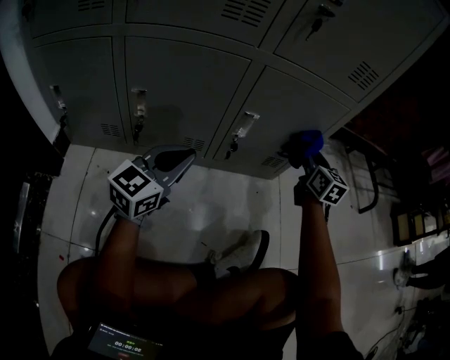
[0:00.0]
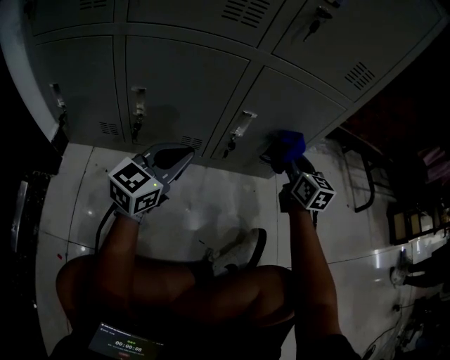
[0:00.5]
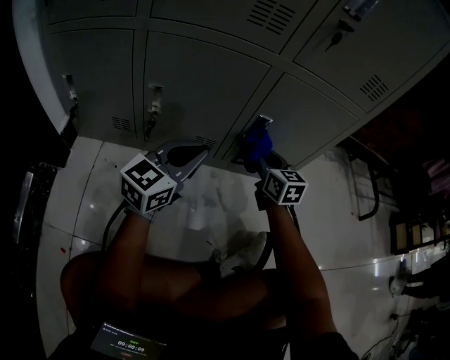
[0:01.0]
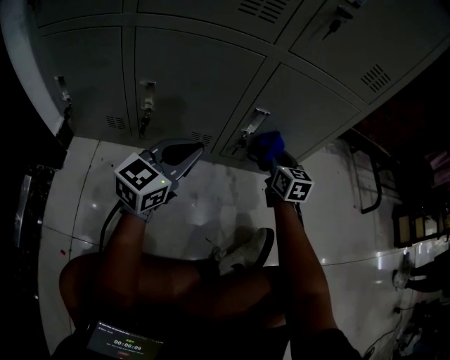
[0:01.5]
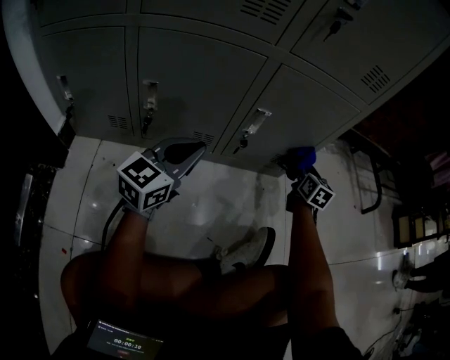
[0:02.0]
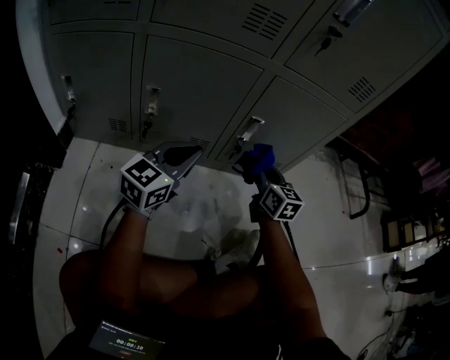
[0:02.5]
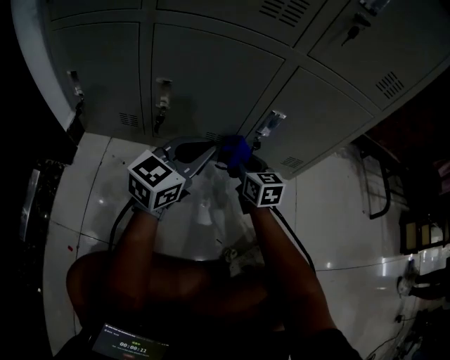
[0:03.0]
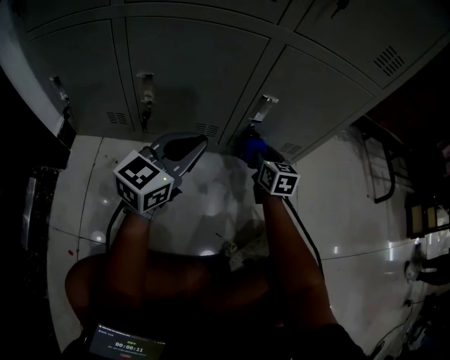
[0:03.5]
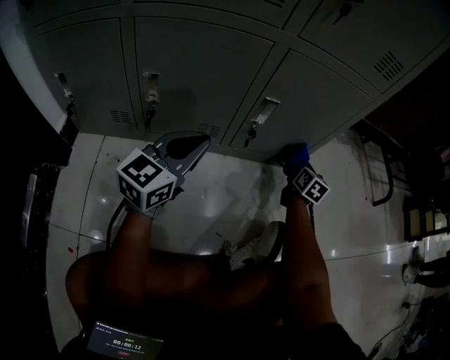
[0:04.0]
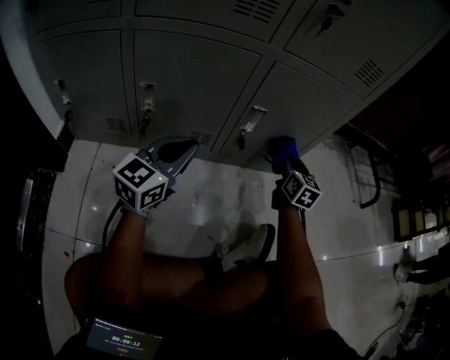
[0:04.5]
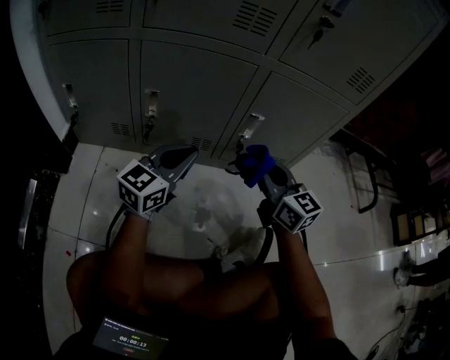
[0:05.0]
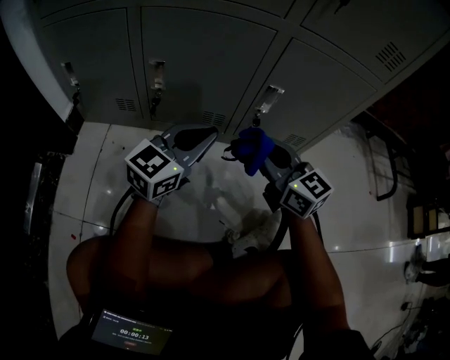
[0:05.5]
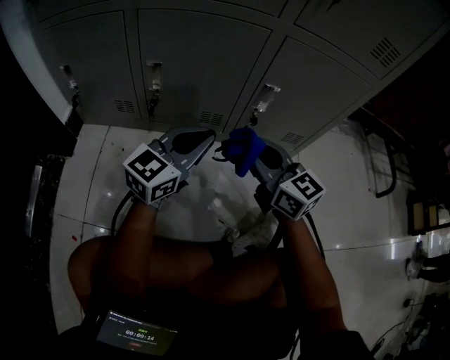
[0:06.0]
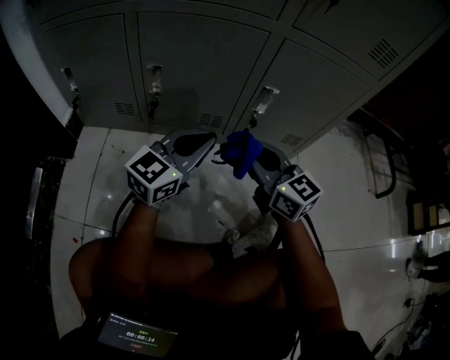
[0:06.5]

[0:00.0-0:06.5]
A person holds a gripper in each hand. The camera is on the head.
0:00.0 to 0:02.0: The right gripper shifts some 10 cm downward, and reaches roughly 15 cm to the left, then returns.
0:02.0 to 0:04.5: The right gripper moves left and right over roughly 25 cm, changing direction 2 times.
0:04.5 to 0:06.5: The right gripper travels to the left and backward by about 25 cm, and changes its angle by approximately 50 degrees.

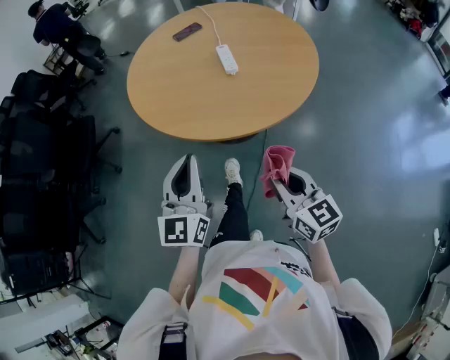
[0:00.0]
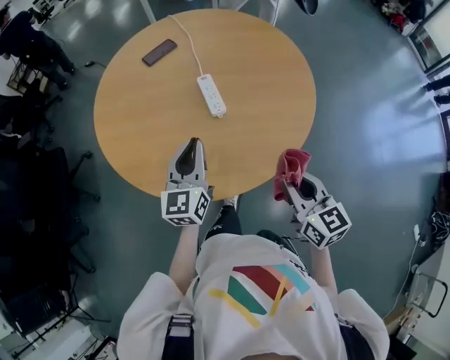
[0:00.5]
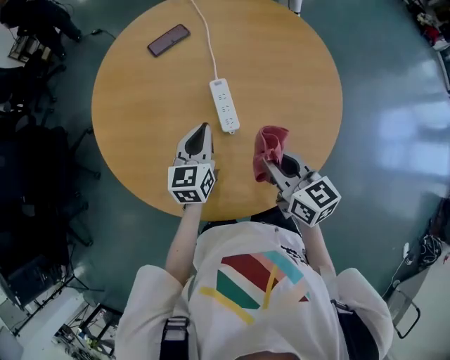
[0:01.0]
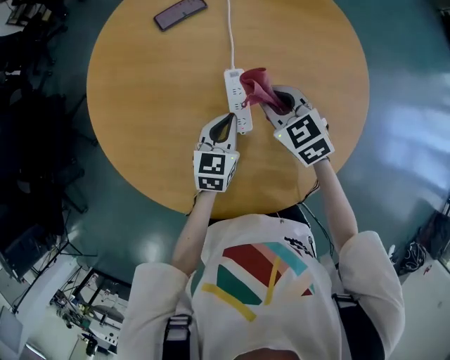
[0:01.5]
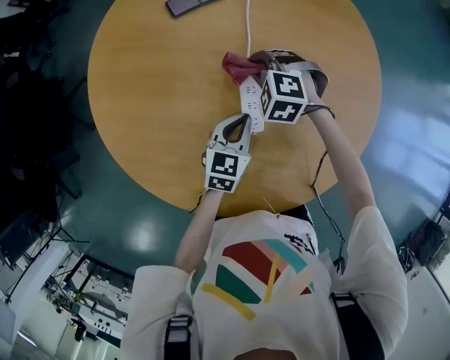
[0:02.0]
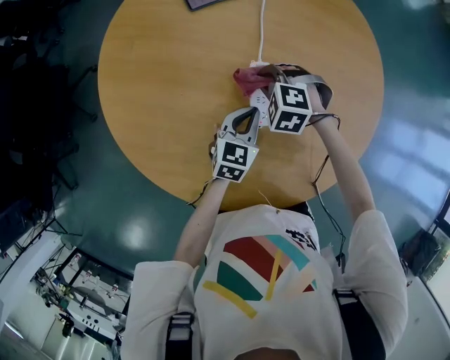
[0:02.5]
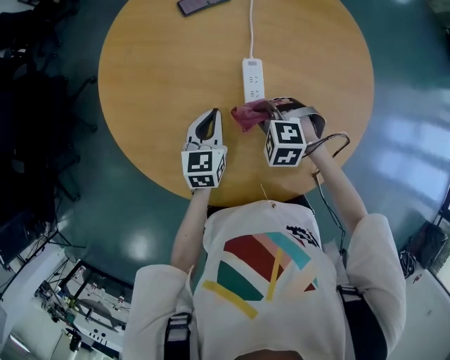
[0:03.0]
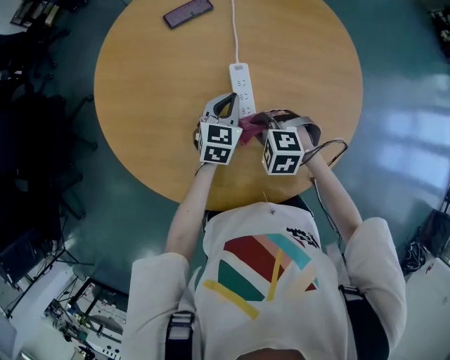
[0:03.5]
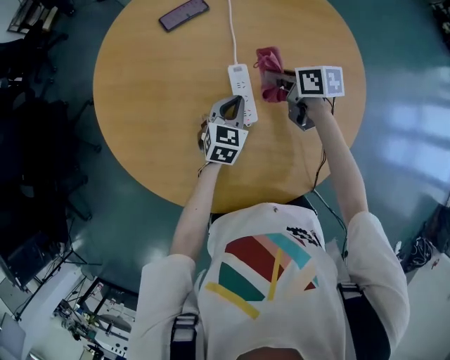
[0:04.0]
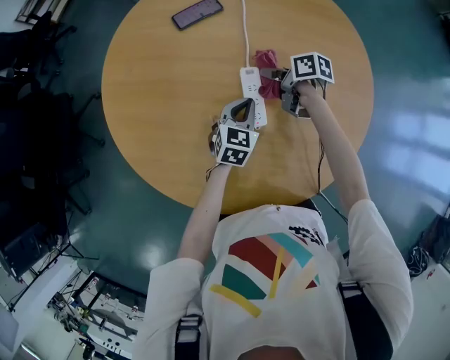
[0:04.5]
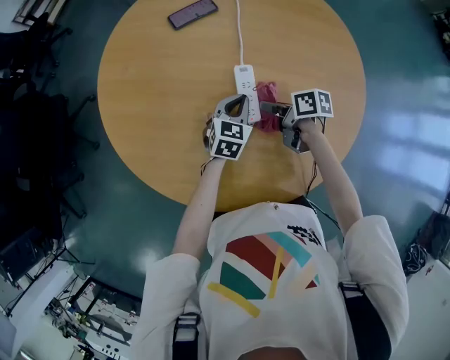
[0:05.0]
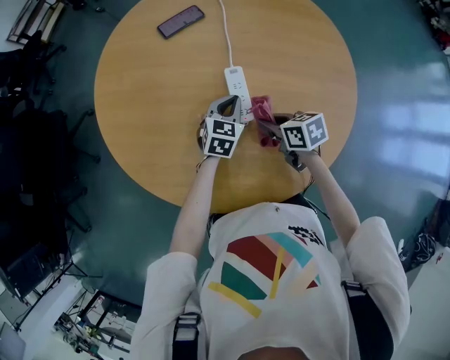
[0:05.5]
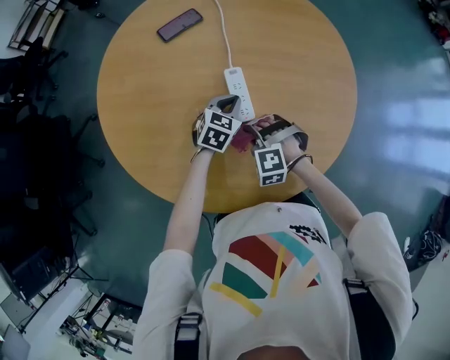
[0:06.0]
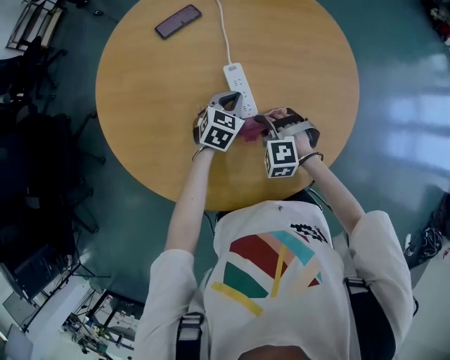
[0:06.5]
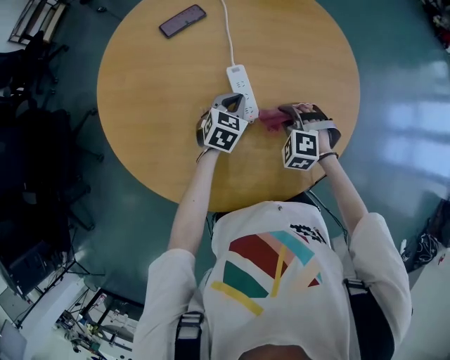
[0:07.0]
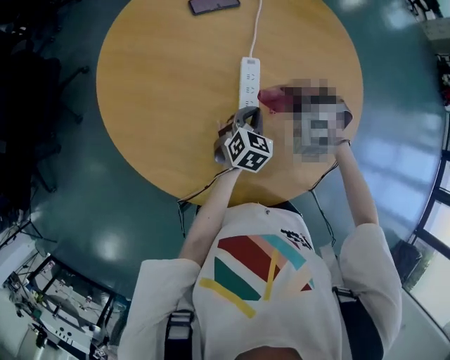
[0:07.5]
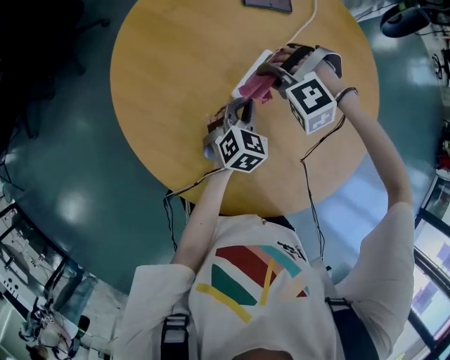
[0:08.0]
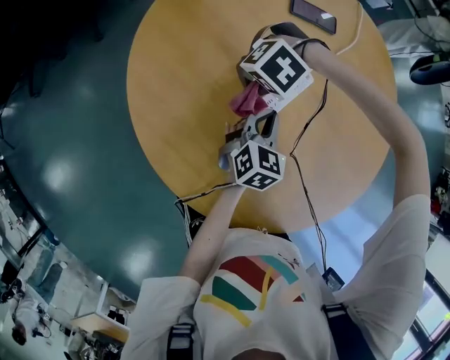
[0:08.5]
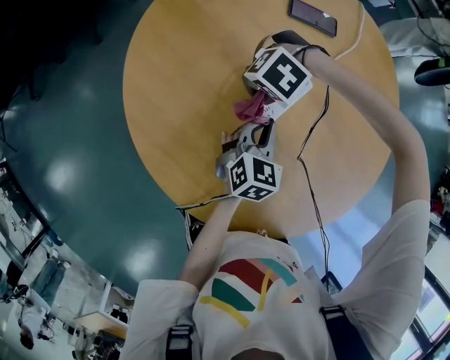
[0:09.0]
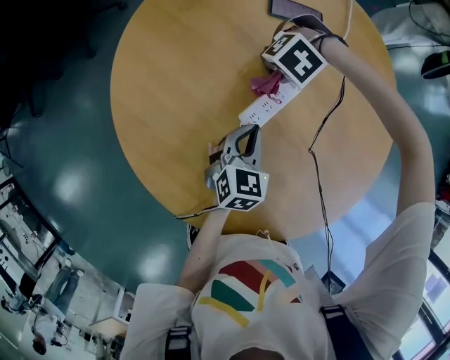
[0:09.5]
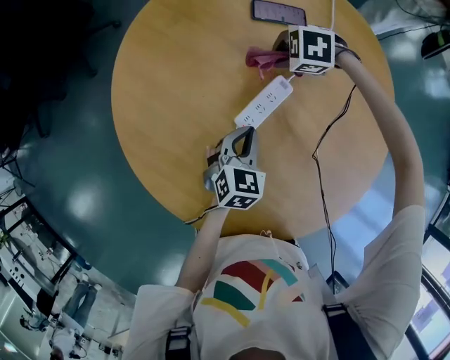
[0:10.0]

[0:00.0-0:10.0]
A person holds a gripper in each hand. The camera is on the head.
0:00.0 to 0:02.0: The pair of grippers is taken forward, some 60 cm. The right gripper points its fingers some 50 degrees further downward. The left gripper shifts some 30 cm downward, and angles its fingers downward, by some 40 degrees.
0:02.0 to 0:04.0: The right gripper heads to the right, covering some 5 cm, reaches approximately 20 cm backward, then returns, and twists roughly 90 degrees clockwise, seen from behind; the left gripper goes to the left and returns, approximately 10 cm each way.
0:04.0 to 0:06.0: The right gripper heads backward and to the left, covering about 20 cm, and twists approximately 100 degrees counterclockwise, seen from behind.
0:06.0 to 0:08.0: The left gripper ends up approximately 10 cm from where it was, and turns by about 40 degrees. Meanwhile the right gripper ends up roughly 20 cm from where it was, and rolls counterclockwise, seen from behind, by roughly 50 degrees.
0:08.0 to 0:10.0: The right gripper ends up approximately 15 cm from where it was, and turns by some 50 degrees.

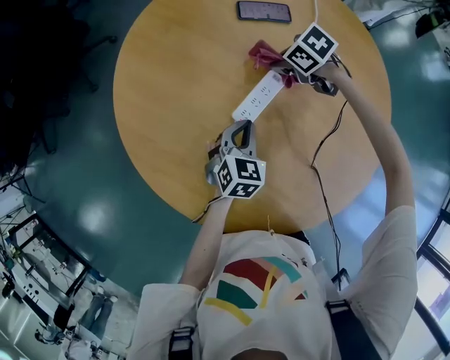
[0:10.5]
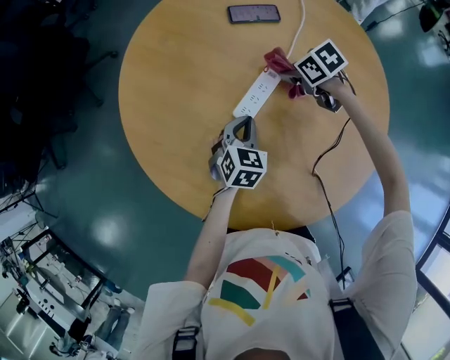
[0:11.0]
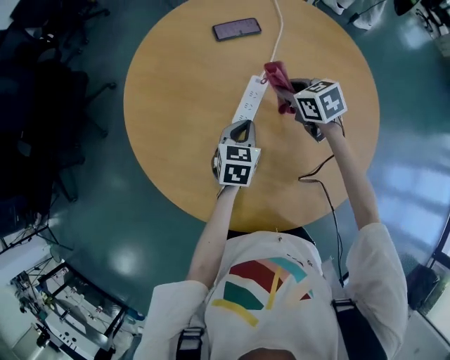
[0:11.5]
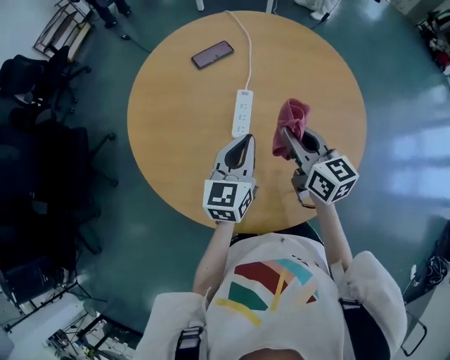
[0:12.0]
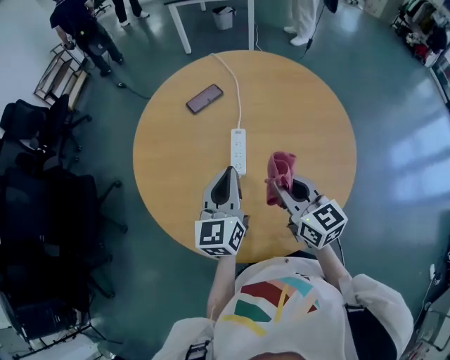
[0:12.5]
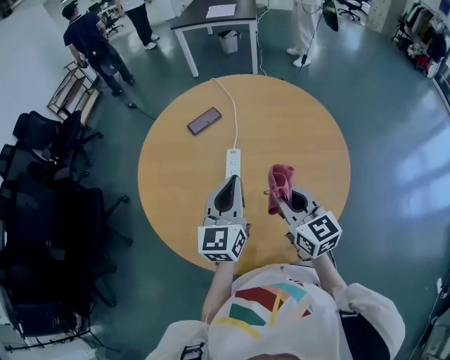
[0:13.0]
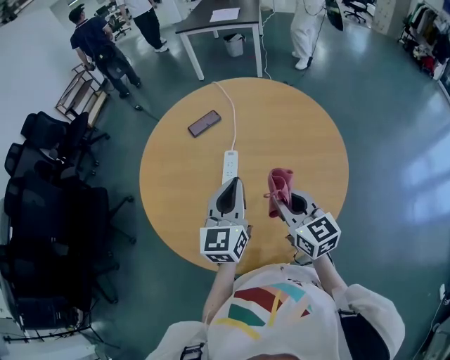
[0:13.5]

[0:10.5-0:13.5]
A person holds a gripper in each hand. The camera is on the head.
0:10.5 to 0:12.0: The left gripper is displaced upward by some 25 cm, and angles its fingers upward, by approximately 30 degrees, while the right gripper moves approximately 40 cm, and points its fingers some 50 degrees further upward.
0:12.0 to 0:13.5: The right gripper shifts approximately 10 cm backward and upward; the left gripper is displaced upward by some 15 cm.

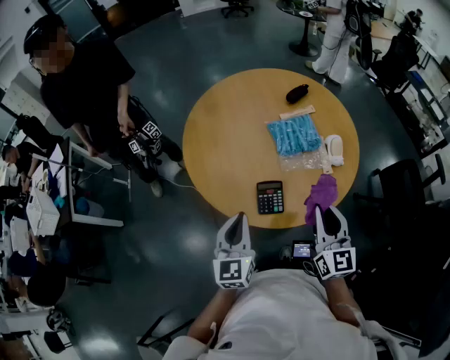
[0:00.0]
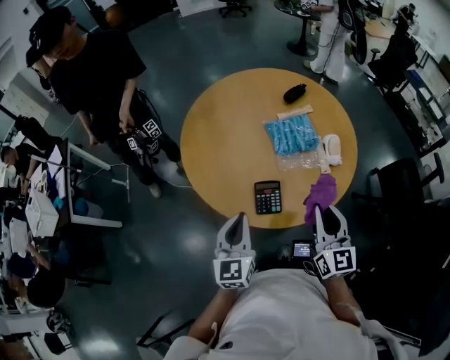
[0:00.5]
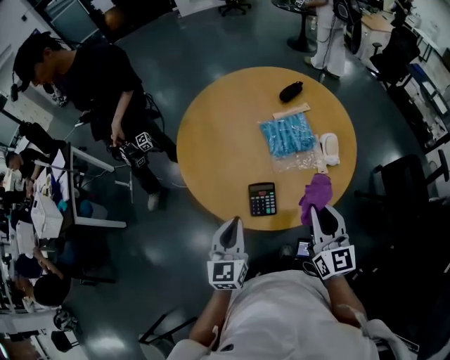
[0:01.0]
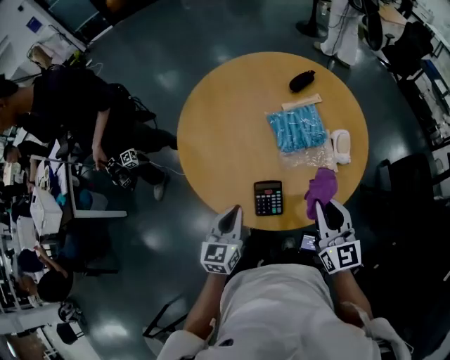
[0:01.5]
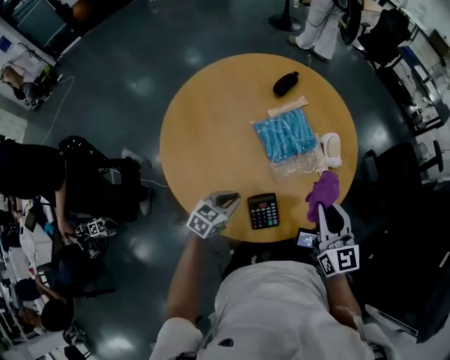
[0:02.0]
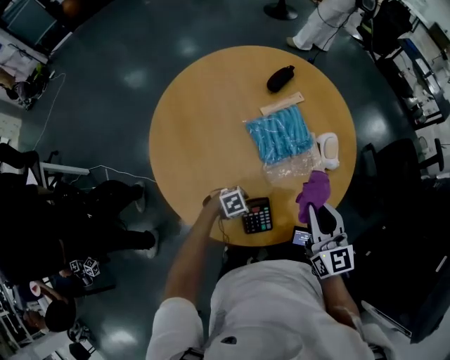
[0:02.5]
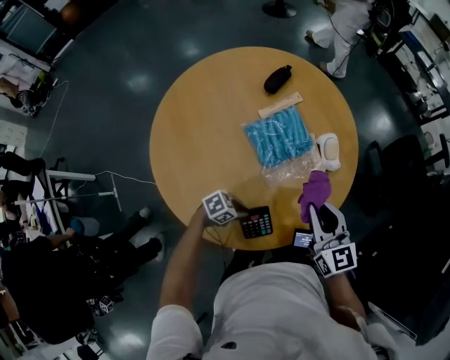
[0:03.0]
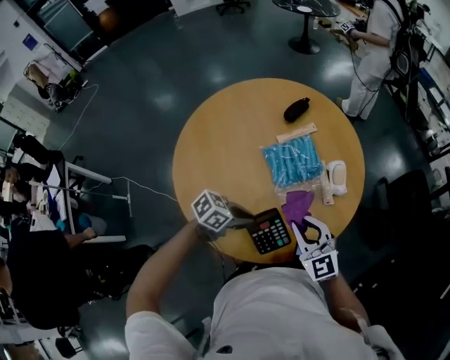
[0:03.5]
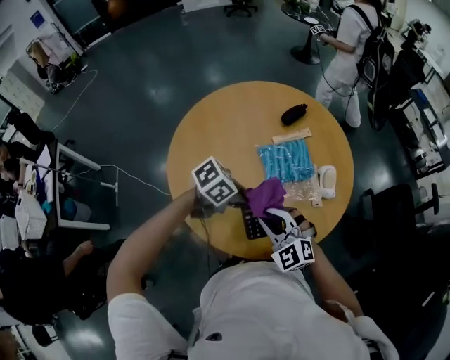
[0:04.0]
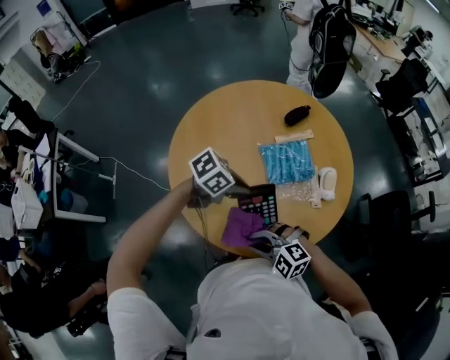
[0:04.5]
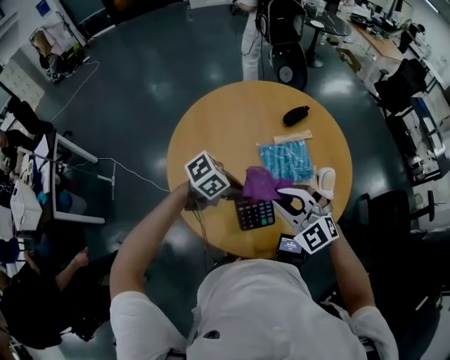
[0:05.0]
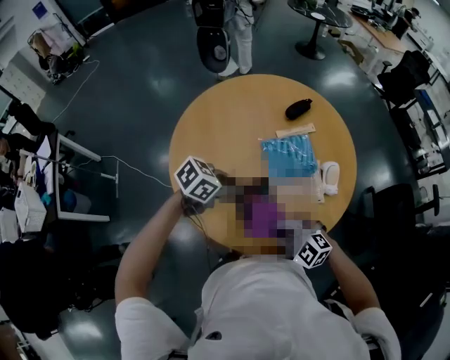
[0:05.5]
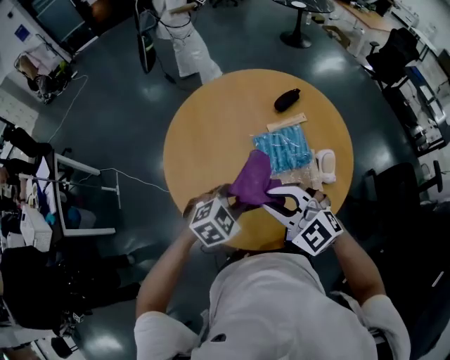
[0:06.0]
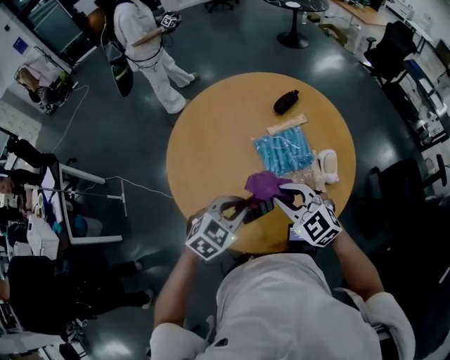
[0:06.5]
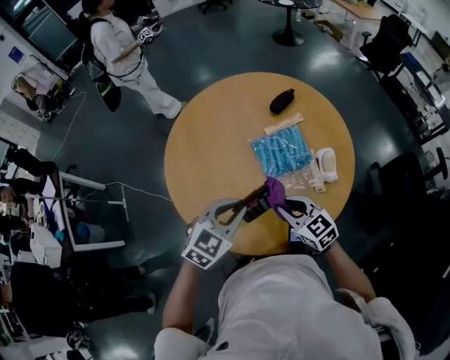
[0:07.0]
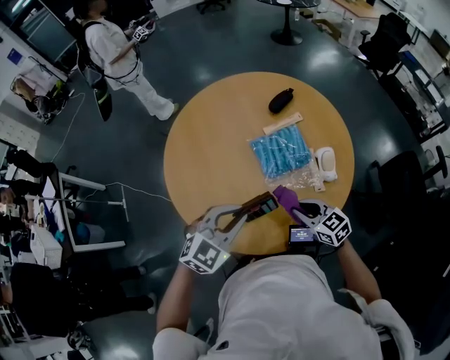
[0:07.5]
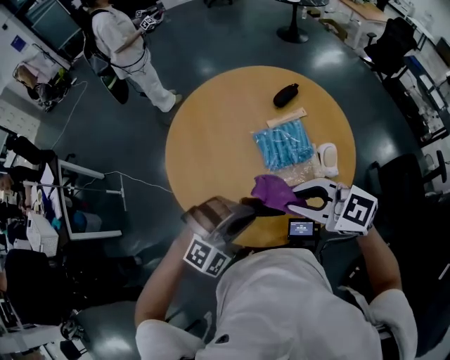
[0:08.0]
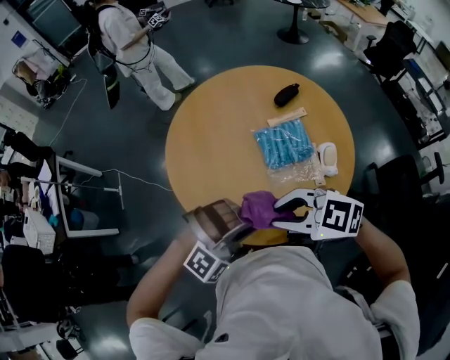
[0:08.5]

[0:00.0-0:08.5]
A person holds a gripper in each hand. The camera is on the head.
0:00.0 to 0:02.0: The left gripper heads downward, covering about 20 cm, and changes its angle by some 60 degrees. The right gripper ends up about 10 cm from where it was.
0:02.0 to 0:04.0: The right gripper ends up some 15 cm from where it was, and rotates about 60 degrees. The left gripper shifts roughly 15 cm upward, and rotates about 30 degrees.
0:04.0 to 0:06.5: The left gripper turns by some 40 degrees, while the right gripper moves up and down over approximately 15 cm, changing direction 4 times.
0:06.5 to 0:08.5: The left gripper shifts by approximately 10 cm, and rotates around the line of its fingers by roughly 60 degrees, clockwise from behind. Meanwhile the right gripper changes place by some 15 cm, and swivels some 40 degrees.
